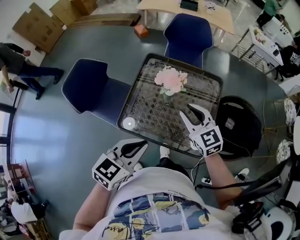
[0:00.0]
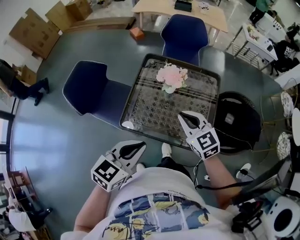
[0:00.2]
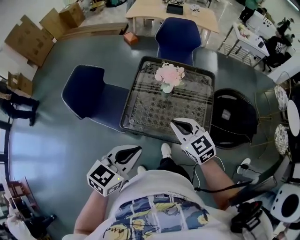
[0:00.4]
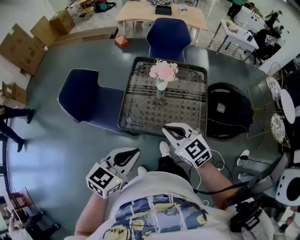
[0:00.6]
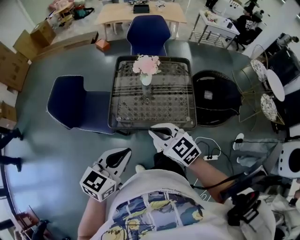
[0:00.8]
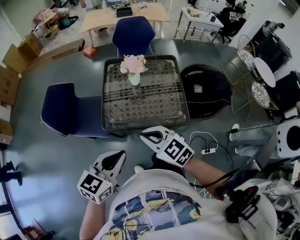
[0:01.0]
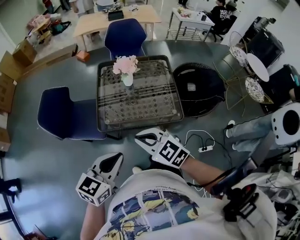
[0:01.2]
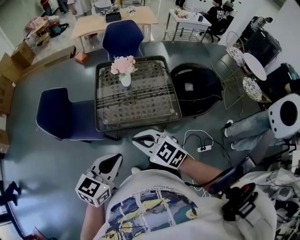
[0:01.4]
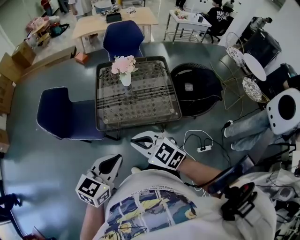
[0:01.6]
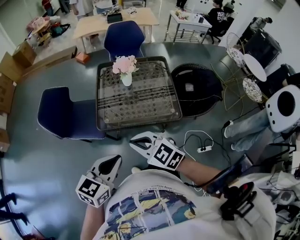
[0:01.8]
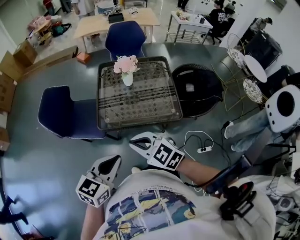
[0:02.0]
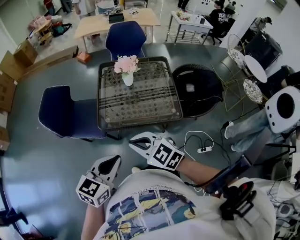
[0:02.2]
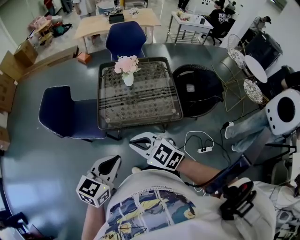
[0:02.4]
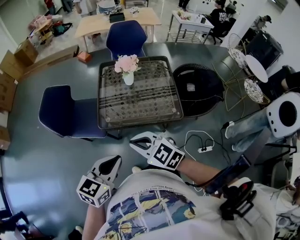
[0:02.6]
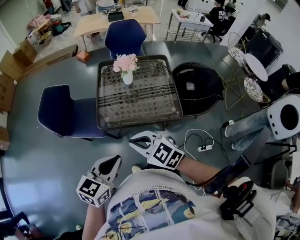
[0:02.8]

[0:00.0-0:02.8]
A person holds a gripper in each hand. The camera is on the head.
0:00.0 to 0:01.4: The left gripper moves backward and to the left, some 20 cm, while the right gripper shifts some 35 cm backward and to the left.
0:01.4 to 0:02.8: The grippers make only small movements.

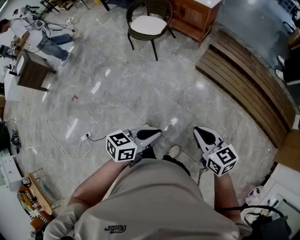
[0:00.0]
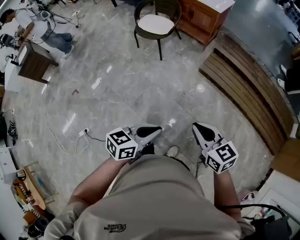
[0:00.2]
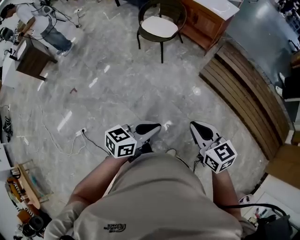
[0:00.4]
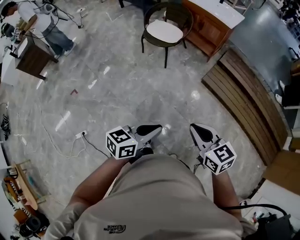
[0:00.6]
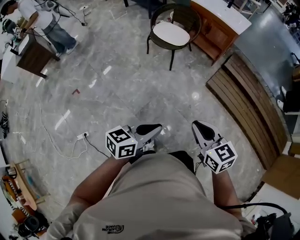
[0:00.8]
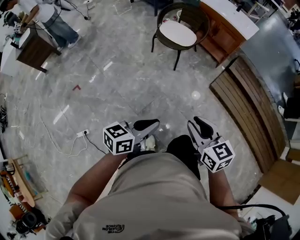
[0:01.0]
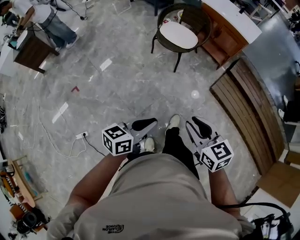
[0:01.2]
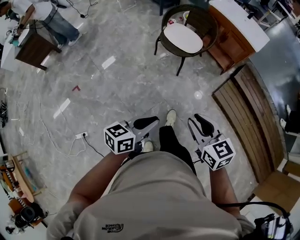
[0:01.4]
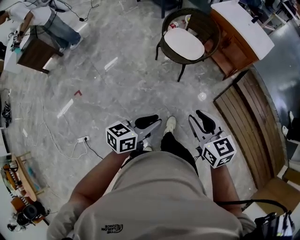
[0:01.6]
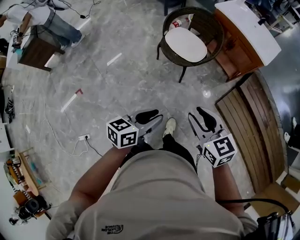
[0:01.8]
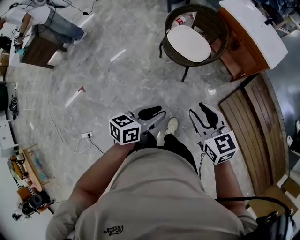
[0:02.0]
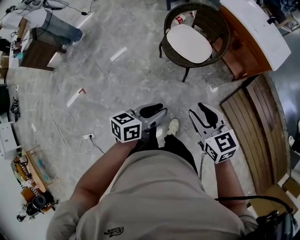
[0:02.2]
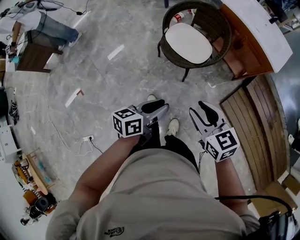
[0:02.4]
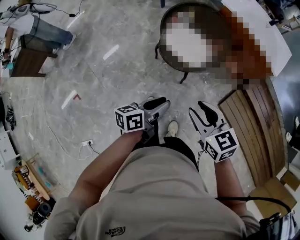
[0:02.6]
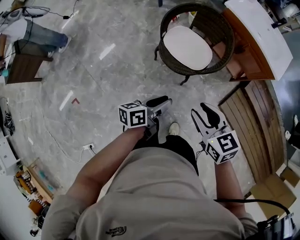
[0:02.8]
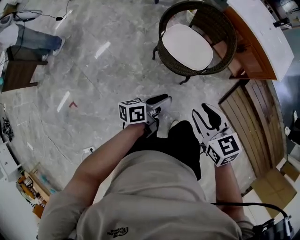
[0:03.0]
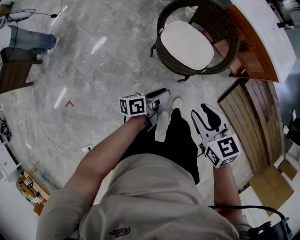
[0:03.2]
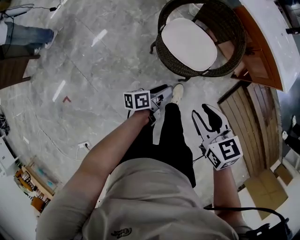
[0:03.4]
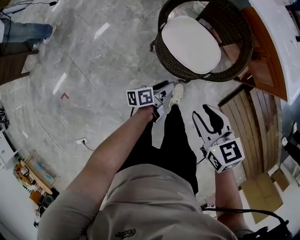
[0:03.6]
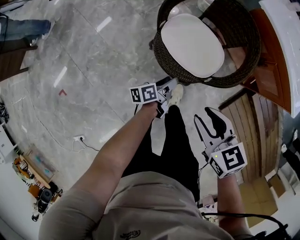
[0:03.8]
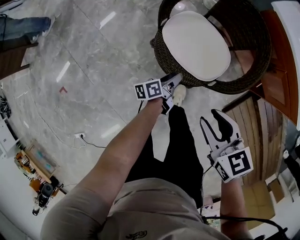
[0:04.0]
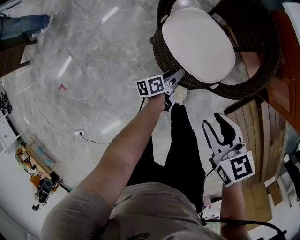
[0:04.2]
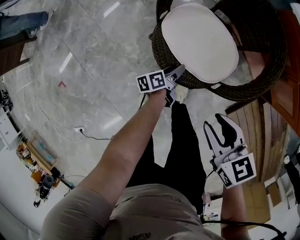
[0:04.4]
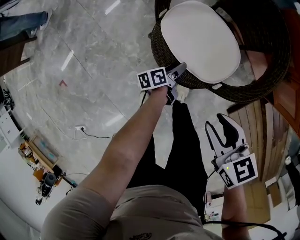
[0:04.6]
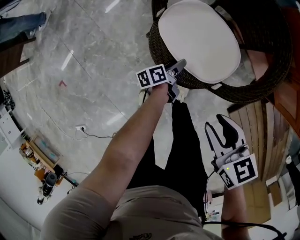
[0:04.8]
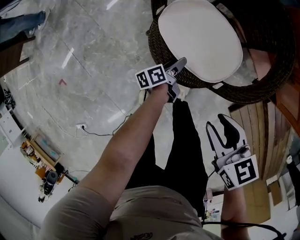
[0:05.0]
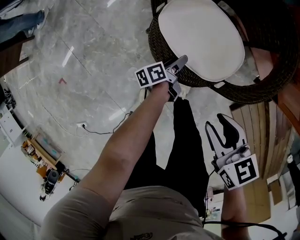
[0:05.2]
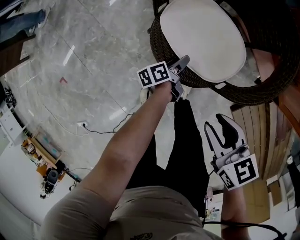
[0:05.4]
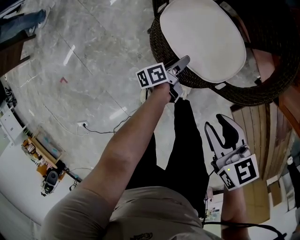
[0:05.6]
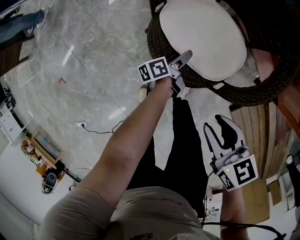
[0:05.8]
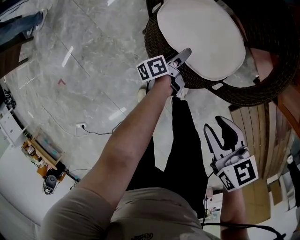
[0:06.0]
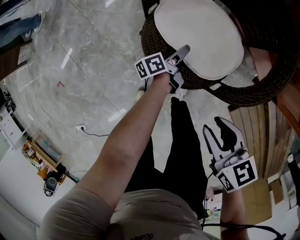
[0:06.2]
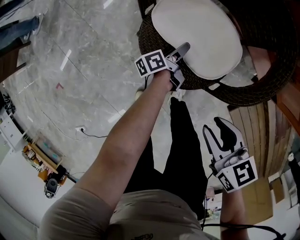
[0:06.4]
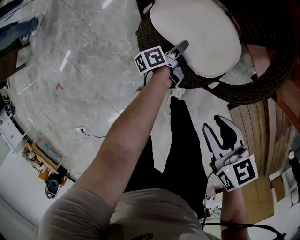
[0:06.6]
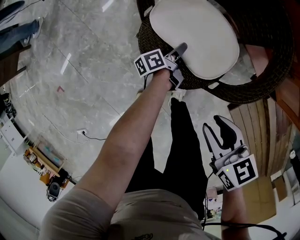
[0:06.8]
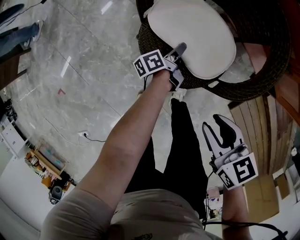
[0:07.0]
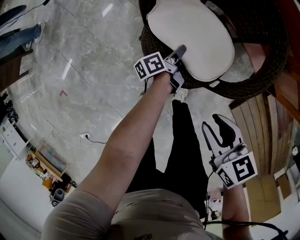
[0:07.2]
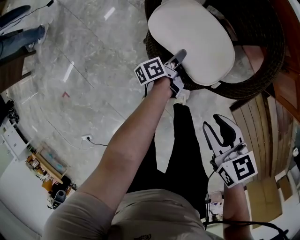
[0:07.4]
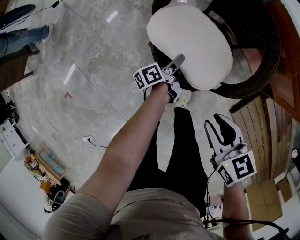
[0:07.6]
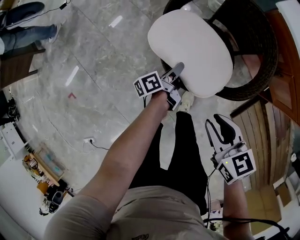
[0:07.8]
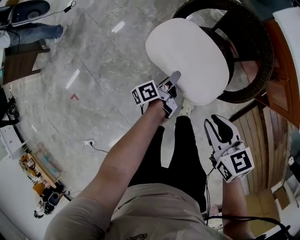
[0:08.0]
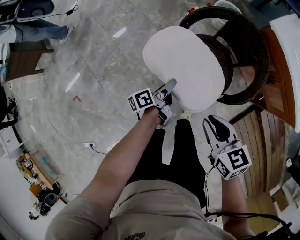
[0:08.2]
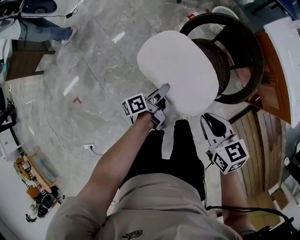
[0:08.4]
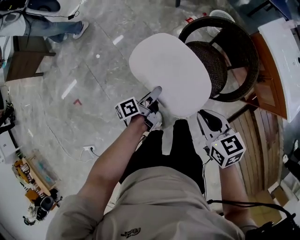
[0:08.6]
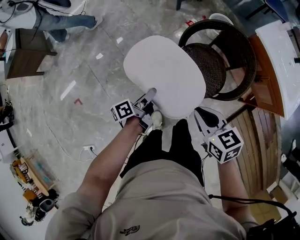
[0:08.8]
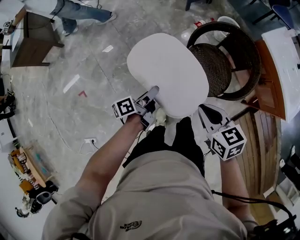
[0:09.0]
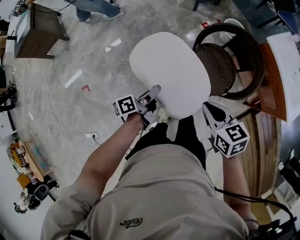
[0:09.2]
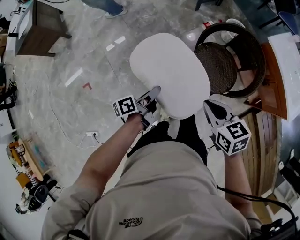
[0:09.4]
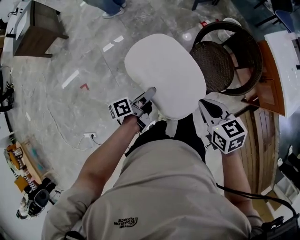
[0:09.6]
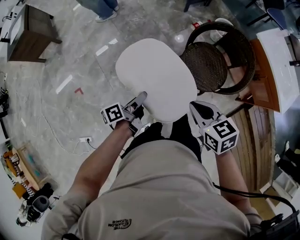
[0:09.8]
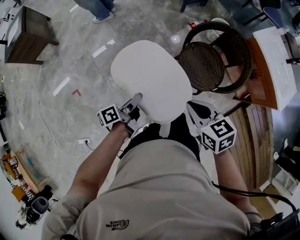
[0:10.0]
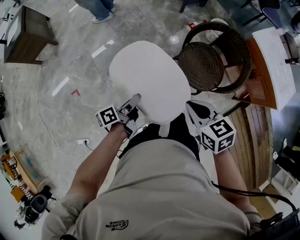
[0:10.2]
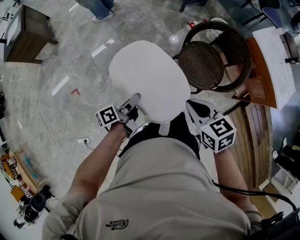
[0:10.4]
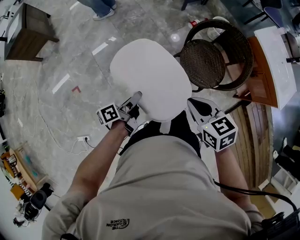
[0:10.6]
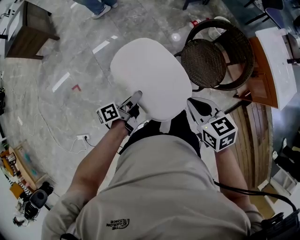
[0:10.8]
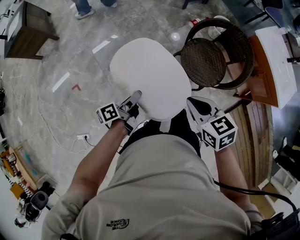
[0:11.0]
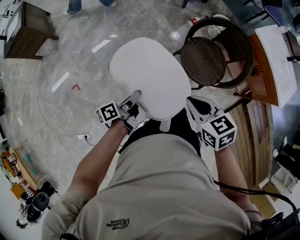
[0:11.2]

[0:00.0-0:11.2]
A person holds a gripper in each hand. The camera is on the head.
0:00.0 to 0:01.6: The right gripper shifts by about 50 cm, and opens up.
0:01.6 to 0:03.2: The right gripper changes place by approximately 40 cm.
0:03.2 to 0:04.8: The right gripper moves downward, about 20 cm.
0:06.4 to 0:08.0: The right gripper heads upward, covering approximately 15 cm.
0:08.0 to 0:09.6: The right gripper changes place by some 25 cm, and closes up.

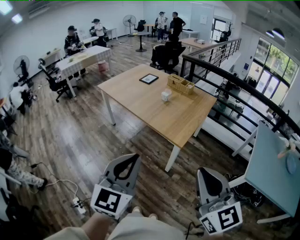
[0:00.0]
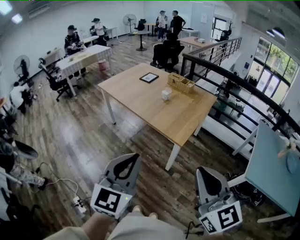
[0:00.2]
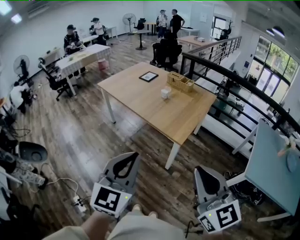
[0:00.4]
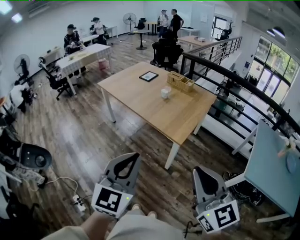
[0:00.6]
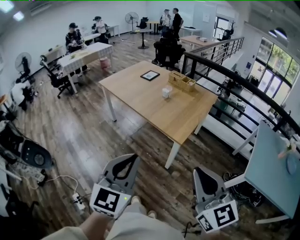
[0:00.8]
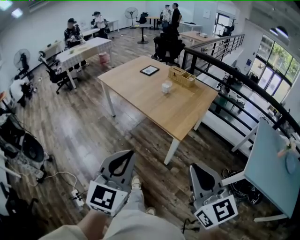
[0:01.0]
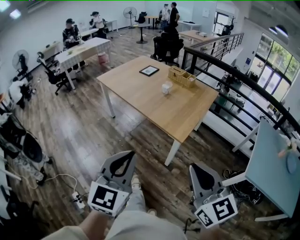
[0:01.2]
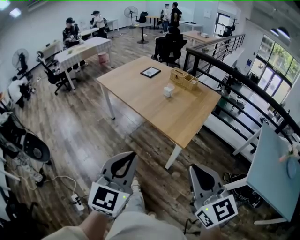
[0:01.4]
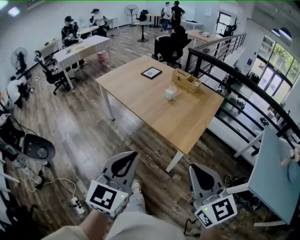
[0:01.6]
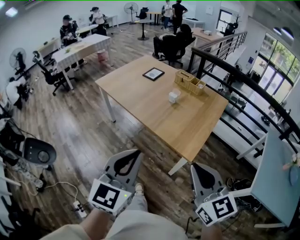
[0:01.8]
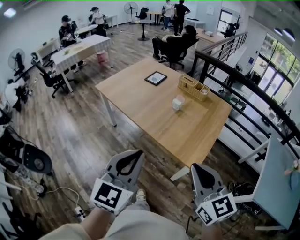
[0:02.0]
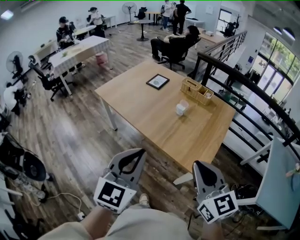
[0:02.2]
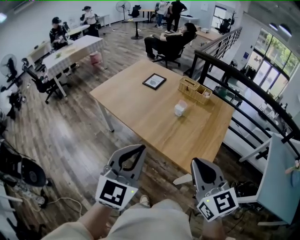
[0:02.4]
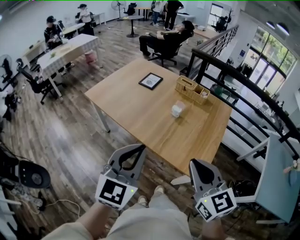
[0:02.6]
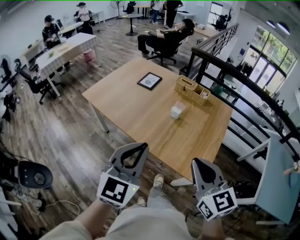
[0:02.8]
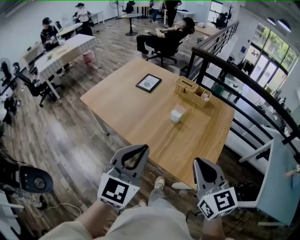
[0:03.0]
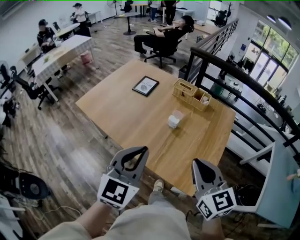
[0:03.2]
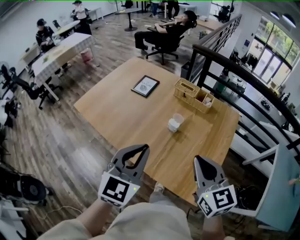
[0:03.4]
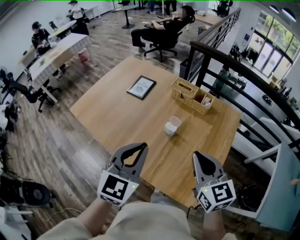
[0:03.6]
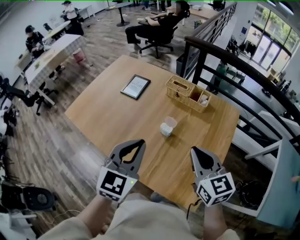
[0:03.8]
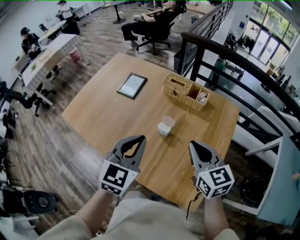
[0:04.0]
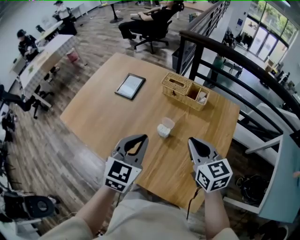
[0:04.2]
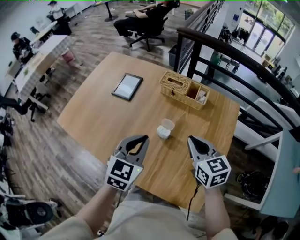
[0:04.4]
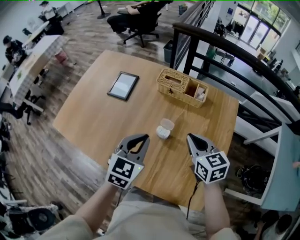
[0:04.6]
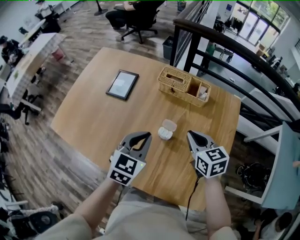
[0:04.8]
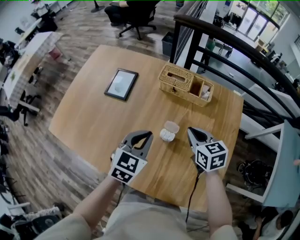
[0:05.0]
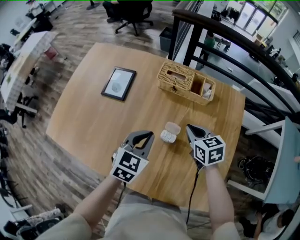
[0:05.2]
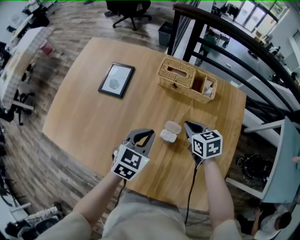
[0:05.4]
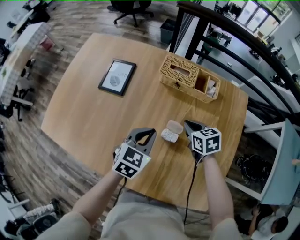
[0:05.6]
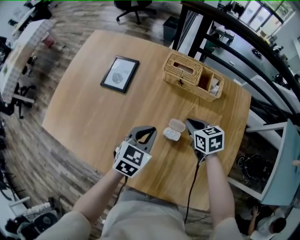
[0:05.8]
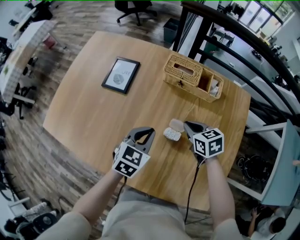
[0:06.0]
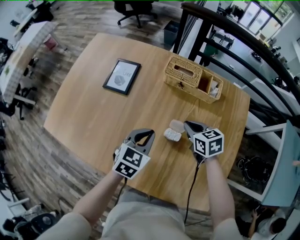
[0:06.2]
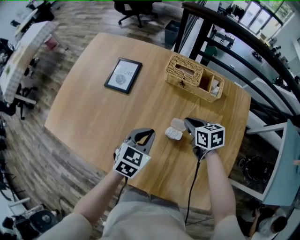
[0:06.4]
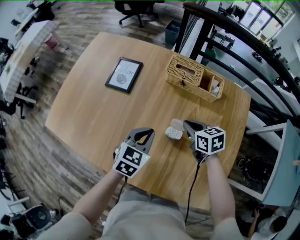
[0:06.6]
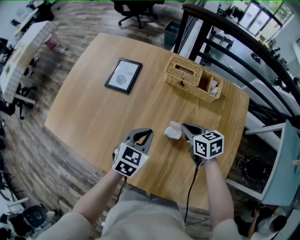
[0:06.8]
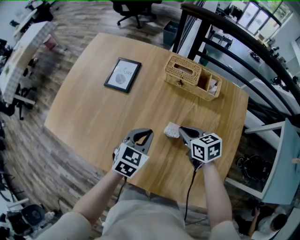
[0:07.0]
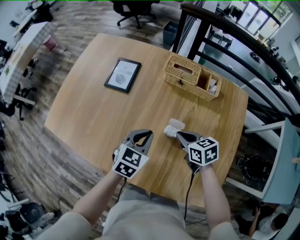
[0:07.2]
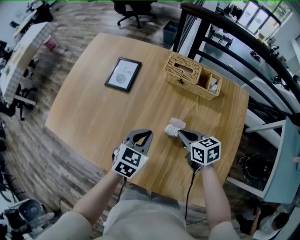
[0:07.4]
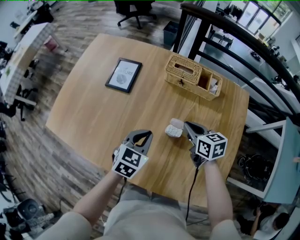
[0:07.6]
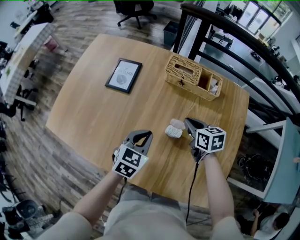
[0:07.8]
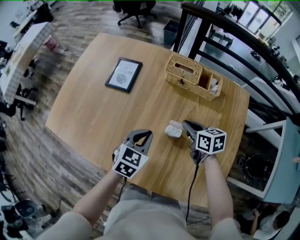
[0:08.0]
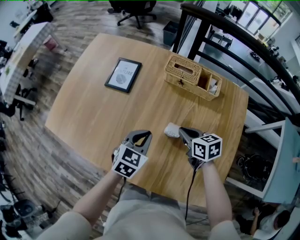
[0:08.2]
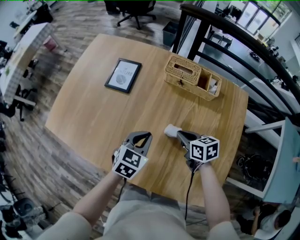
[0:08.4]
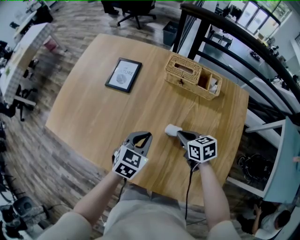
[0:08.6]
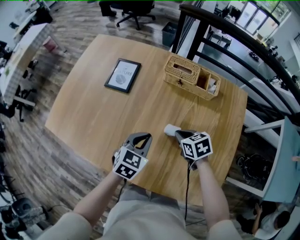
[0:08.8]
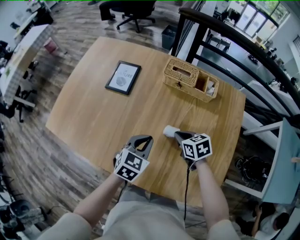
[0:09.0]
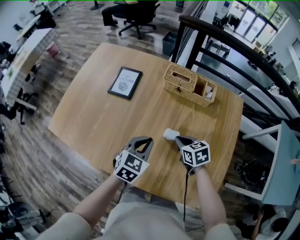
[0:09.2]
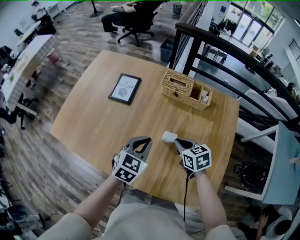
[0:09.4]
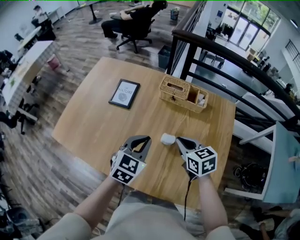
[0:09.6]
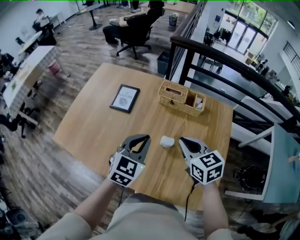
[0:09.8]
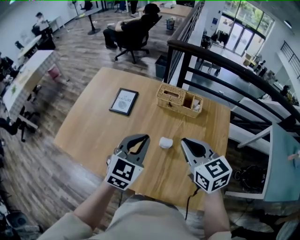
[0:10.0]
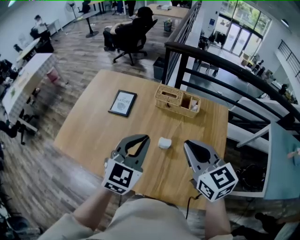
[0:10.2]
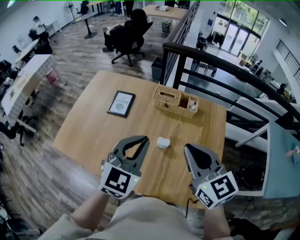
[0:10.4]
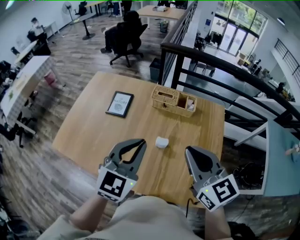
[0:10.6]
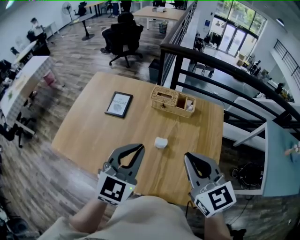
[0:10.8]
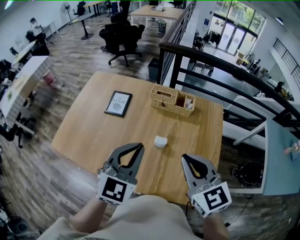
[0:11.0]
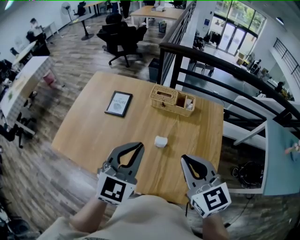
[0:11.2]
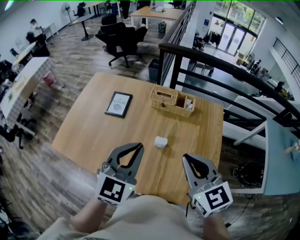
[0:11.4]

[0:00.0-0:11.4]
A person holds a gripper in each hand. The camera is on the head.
0:00.0 to 0:01.4: Both grippers move forward, about 5 cm.
0:01.4 to 0:02.8: Both grippers are carried forward, some 40 cm.
0:02.8 to 0:04.2: Both grippers move forward, about 35 cm.
0:04.2 to 0:05.6: Both grippers travel together downward and forward, about 25 cm. The right gripper turns by roughly 30 degrees; the left gripper turns by roughly 20 degrees.
0:05.6 to 0:07.2: The right gripper shifts some 10 cm backward and to the left.
0:08.6 to 0:10.0: Both grippers travel together upward, about 25 cm. The right gripper changes its angle by approximately 30 degrees. Meanwhile the left gripper rotates approximately 20 degrees.
0:10.0 to 0:11.4: The left gripper travels upward and backward by about 10 cm. The right gripper is displaced backward and upward by some 10 cm.
